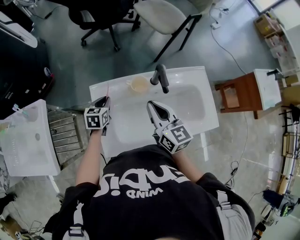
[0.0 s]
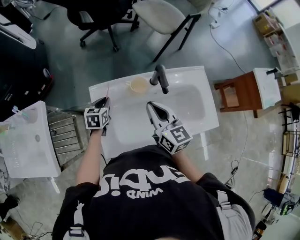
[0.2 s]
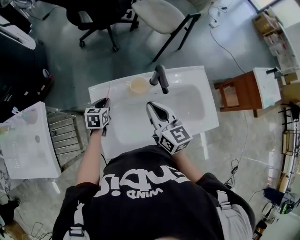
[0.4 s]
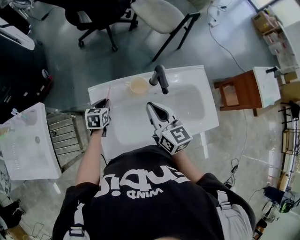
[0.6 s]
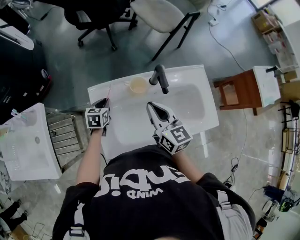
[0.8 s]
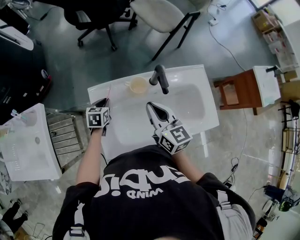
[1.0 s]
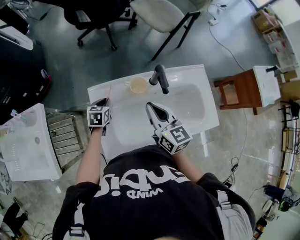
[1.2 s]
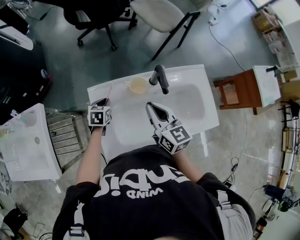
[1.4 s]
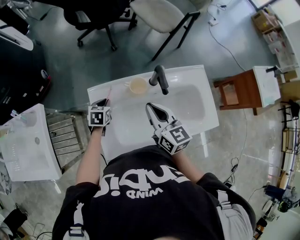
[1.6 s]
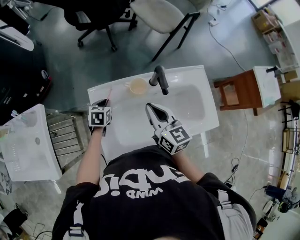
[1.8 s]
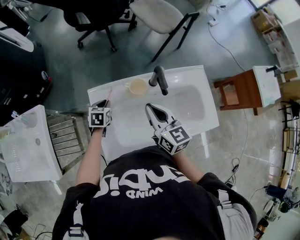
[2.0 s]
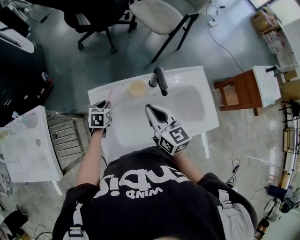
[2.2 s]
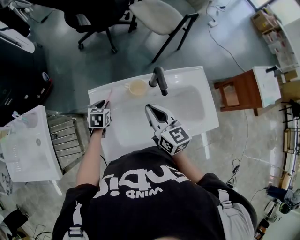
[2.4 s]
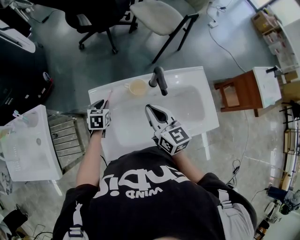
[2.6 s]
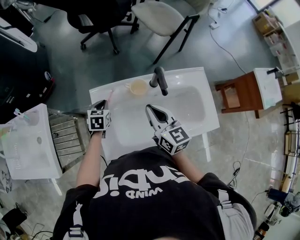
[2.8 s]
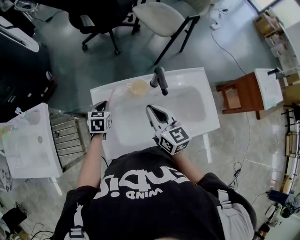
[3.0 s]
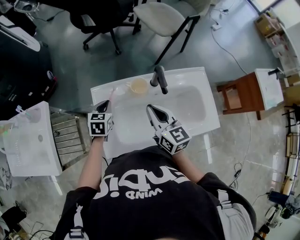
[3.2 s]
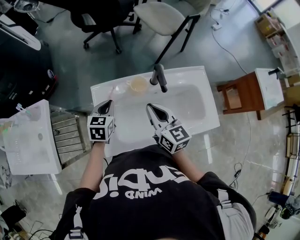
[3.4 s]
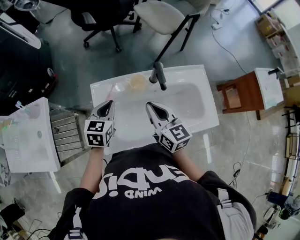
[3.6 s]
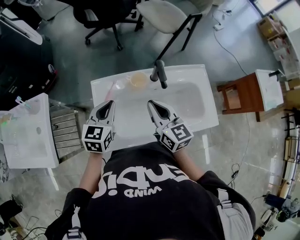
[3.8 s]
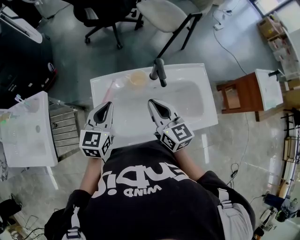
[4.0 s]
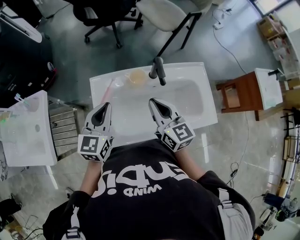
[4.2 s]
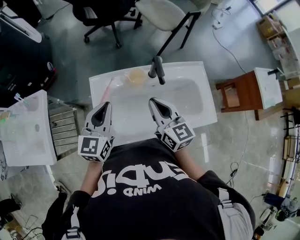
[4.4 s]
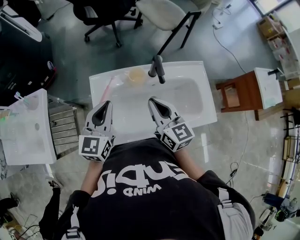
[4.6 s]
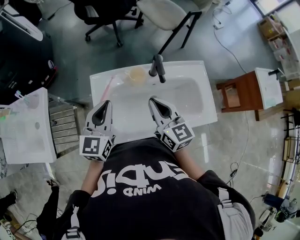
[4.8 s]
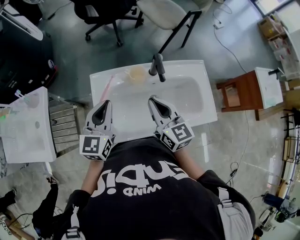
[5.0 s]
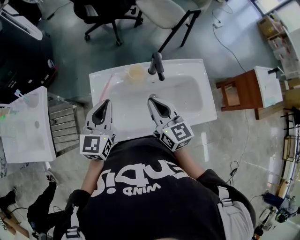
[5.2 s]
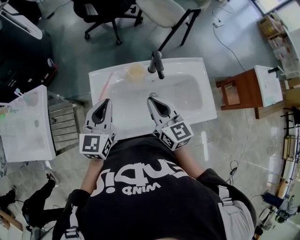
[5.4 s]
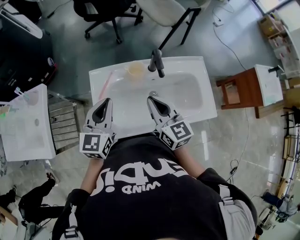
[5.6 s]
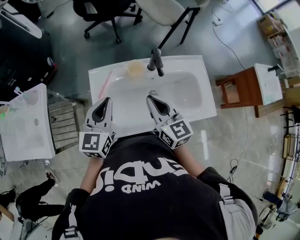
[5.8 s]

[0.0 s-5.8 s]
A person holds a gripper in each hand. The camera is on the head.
0.0 to 2.8 s: The grippers stay close to where they were, moving slightly.
2.8 to 4.4 s: The left gripper shifts approximately 25 cm upward and backward, and angles its fingers upward, by roughly 40 degrees.
4.4 to 5.8 s: The grippers stay close to where they were, moving slightly.

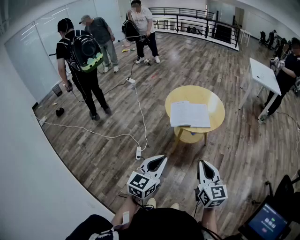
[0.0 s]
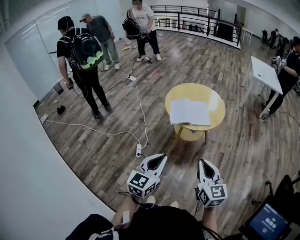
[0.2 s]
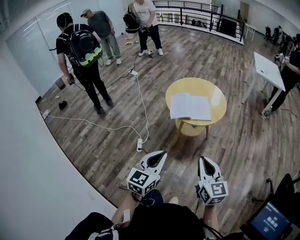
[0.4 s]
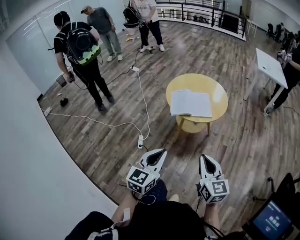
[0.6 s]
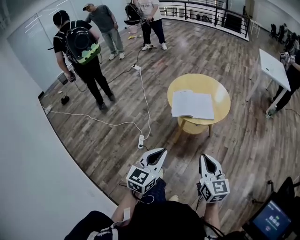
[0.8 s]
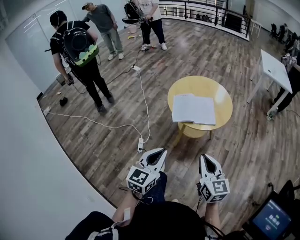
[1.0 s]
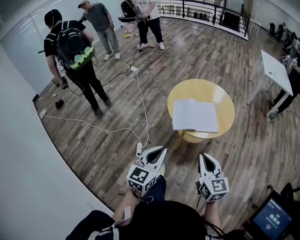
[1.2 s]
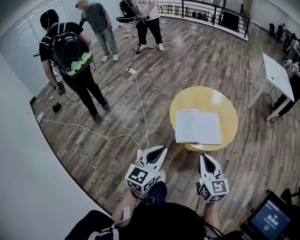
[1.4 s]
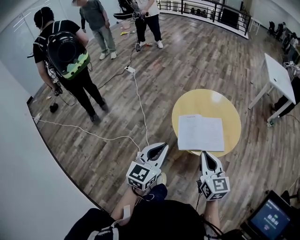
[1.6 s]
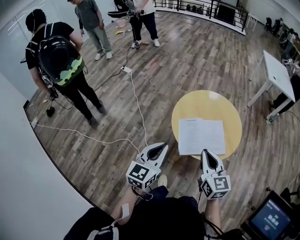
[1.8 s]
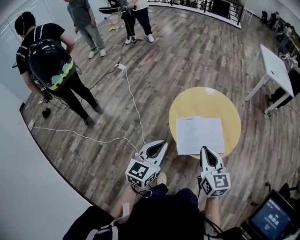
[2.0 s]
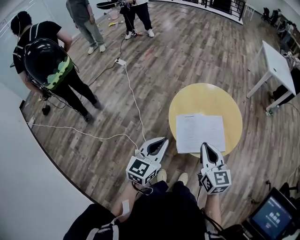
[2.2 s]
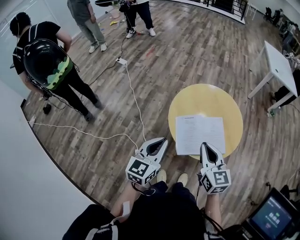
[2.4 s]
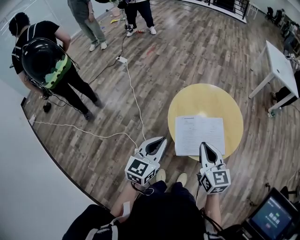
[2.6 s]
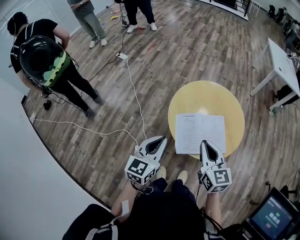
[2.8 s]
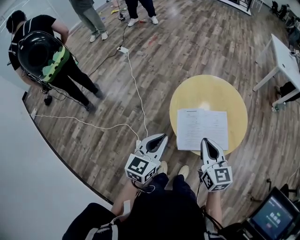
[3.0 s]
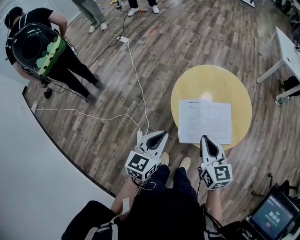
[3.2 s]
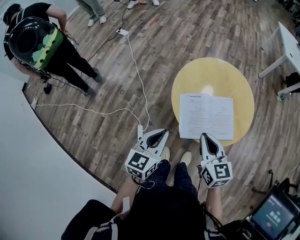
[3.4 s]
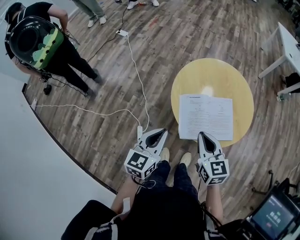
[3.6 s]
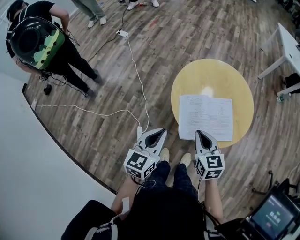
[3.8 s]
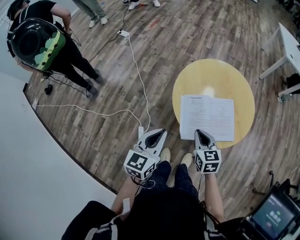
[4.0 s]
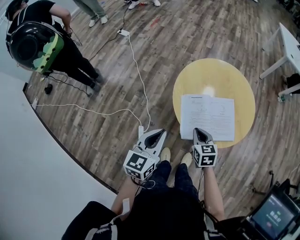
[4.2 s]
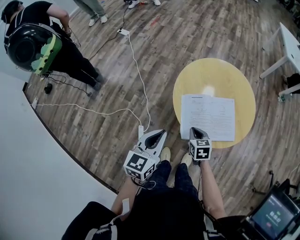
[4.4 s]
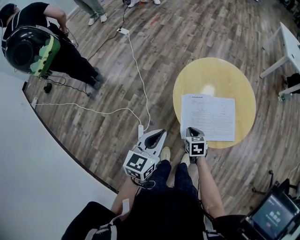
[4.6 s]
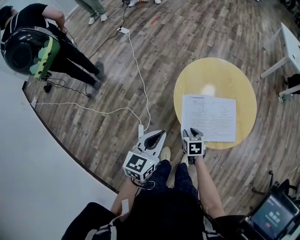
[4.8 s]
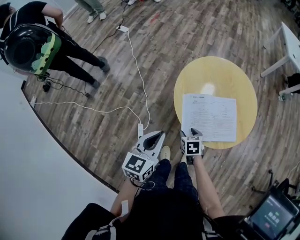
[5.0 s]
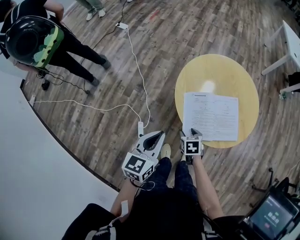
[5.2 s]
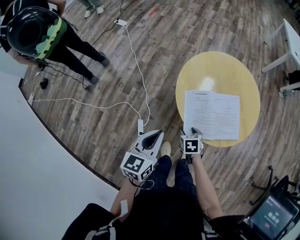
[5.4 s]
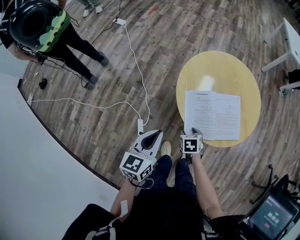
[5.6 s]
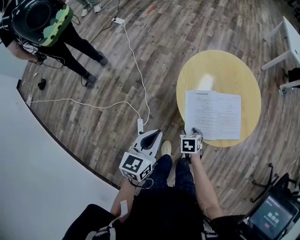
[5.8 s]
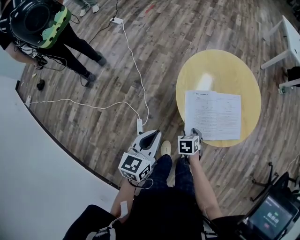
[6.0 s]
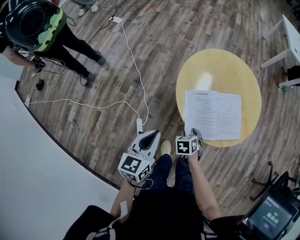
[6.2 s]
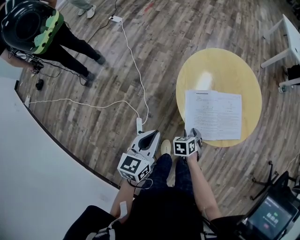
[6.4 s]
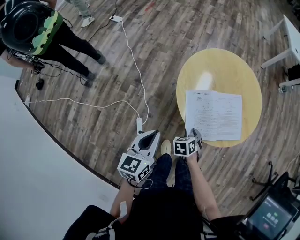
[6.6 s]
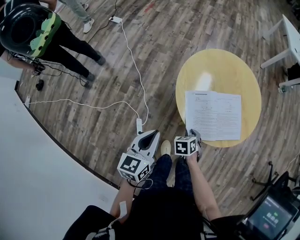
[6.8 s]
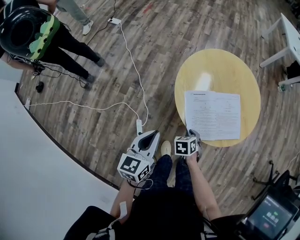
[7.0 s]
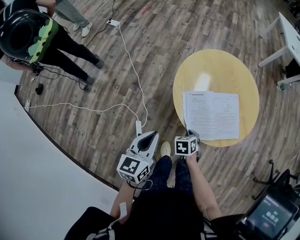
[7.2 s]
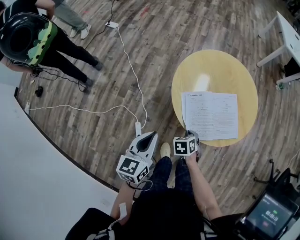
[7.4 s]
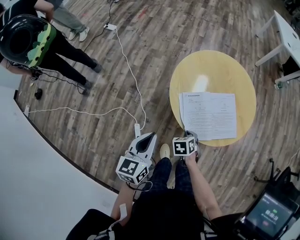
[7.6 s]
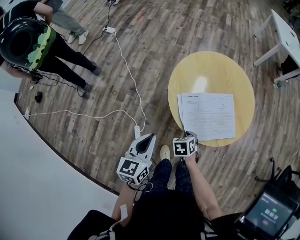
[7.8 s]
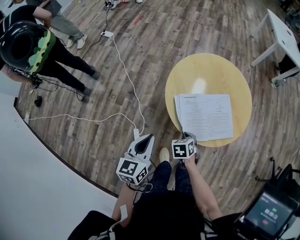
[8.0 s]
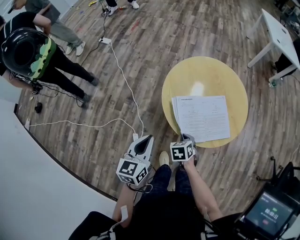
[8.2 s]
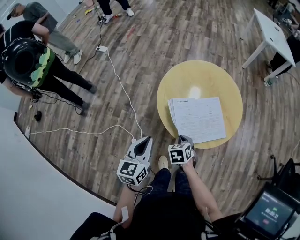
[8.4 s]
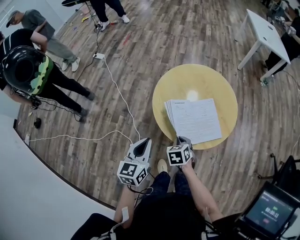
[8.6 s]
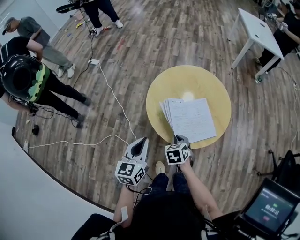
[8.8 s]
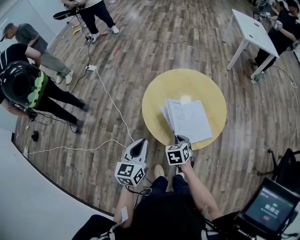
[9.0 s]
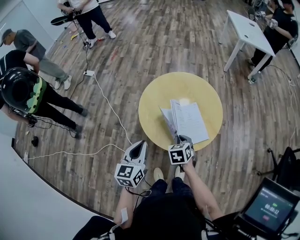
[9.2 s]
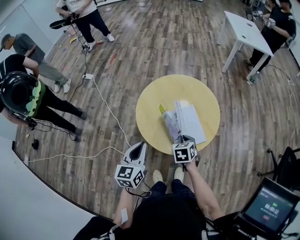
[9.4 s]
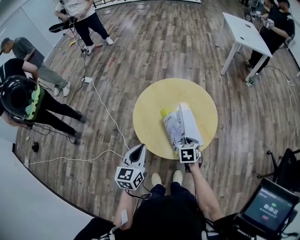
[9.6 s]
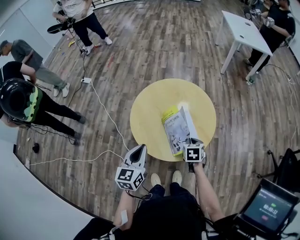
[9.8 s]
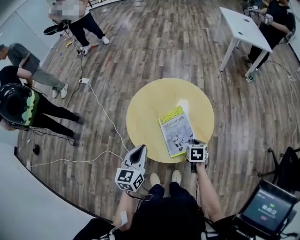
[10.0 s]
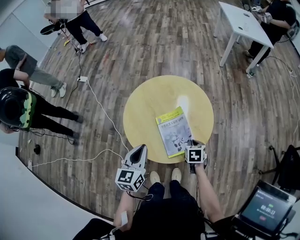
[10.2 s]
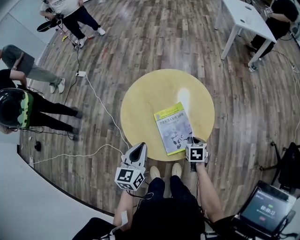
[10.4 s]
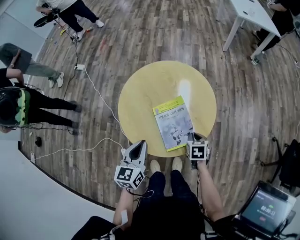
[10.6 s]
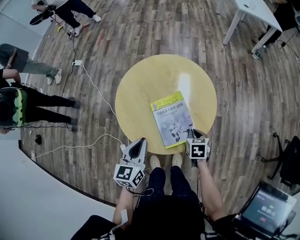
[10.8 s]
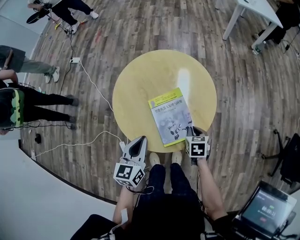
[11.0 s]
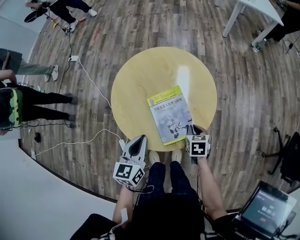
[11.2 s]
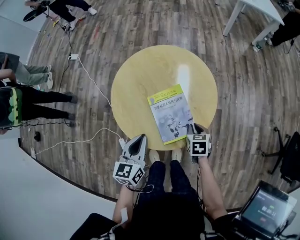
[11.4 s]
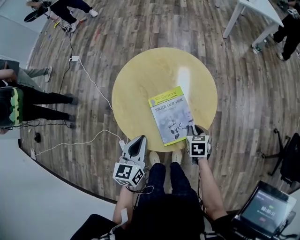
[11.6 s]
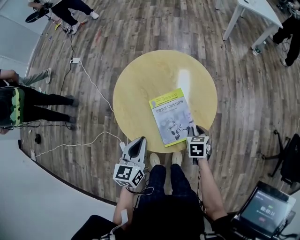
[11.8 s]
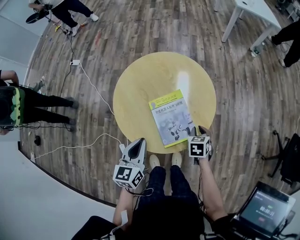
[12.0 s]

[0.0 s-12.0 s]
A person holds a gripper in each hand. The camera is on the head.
0.0 to 1.6 s: Both grippers move forward, roughly 30 cm.
1.6 to 3.0 s: The left gripper is displaced forward and downward by some 15 cm; the right gripper heads forward, covering roughly 10 cm.
3.0 to 4.4 s: The left gripper moves approximately 5 cm; the right gripper travels downward by approximately 25 cm, and tilts its fingers some 30 degrees downward.
4.4 to 6.0 s: The right gripper is displaced downward by some 10 cm, changes its angle by some 20 degrees, and opens up; the left gripper moves about 5 cm.
6.0 to 7.6 s: The right gripper closes its fingers.
7.6 to 9.0 s: The right gripper shifts some 15 cm upward and to the right; the left gripper travels to the right and upward by approximately 10 cm.
9.0 to 10.4 s: The left gripper is displaced to the right and forward by roughly 15 cm, while the right gripper is displaced to the right and downward by roughly 20 cm.
10.4 to 12.0 s: The grippers stay close to where they were, moving slightly.

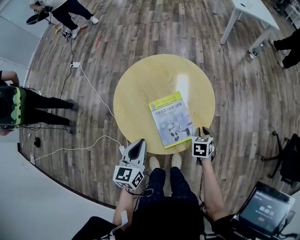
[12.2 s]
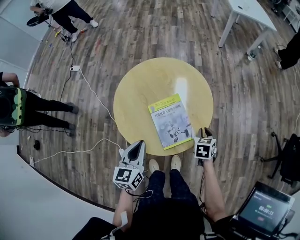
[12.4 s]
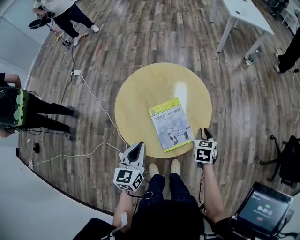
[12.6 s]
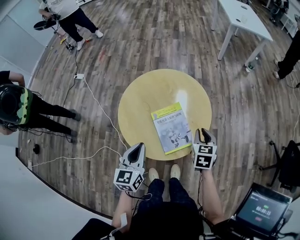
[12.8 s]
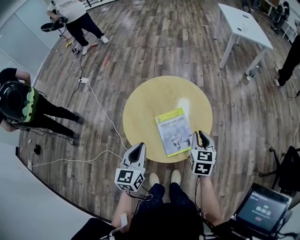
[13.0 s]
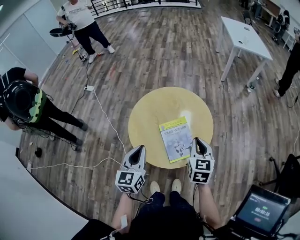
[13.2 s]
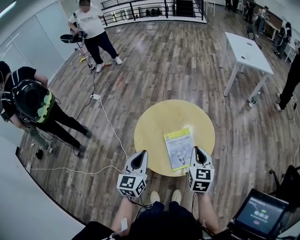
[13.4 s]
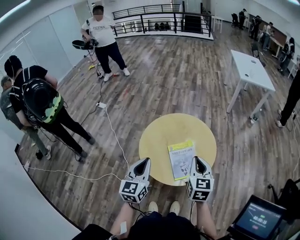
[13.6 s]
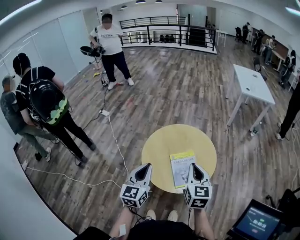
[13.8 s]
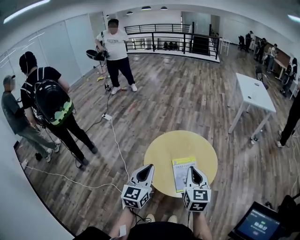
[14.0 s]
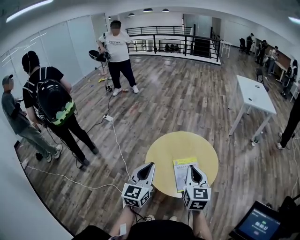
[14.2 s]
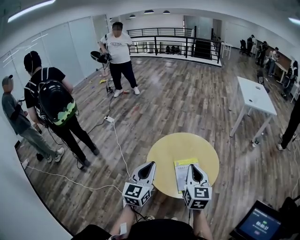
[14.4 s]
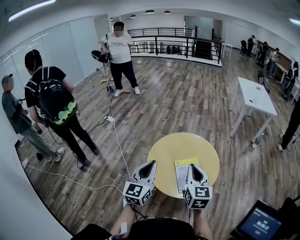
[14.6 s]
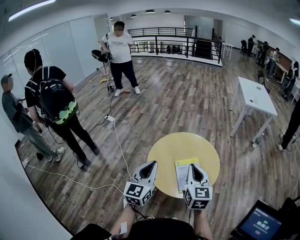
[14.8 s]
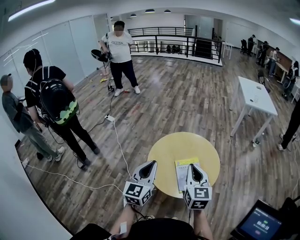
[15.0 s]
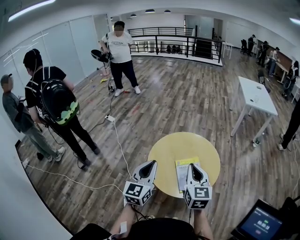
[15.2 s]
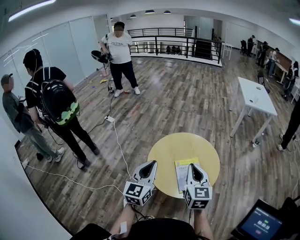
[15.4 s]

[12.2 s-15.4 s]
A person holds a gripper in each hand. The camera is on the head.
12.2 to 13.8 s: The left gripper goes approximately 20 cm upward and to the left, and turns by roughly 20 degrees. Meanwhile the right gripper travels upward and to the left by about 35 cm, and tips its fingers upward by about 40 degrees.
13.8 to 15.4 s: The grippers move only a little.

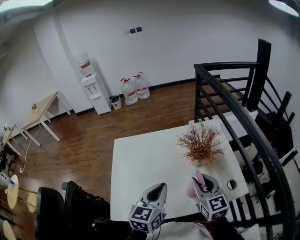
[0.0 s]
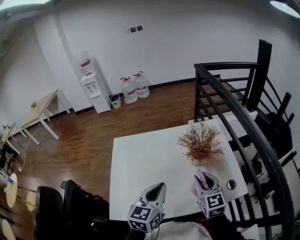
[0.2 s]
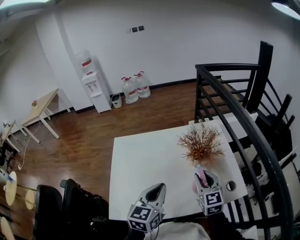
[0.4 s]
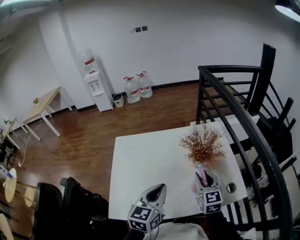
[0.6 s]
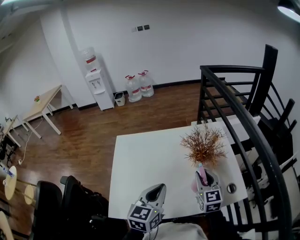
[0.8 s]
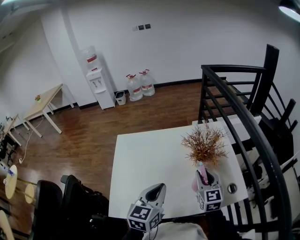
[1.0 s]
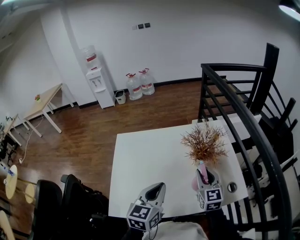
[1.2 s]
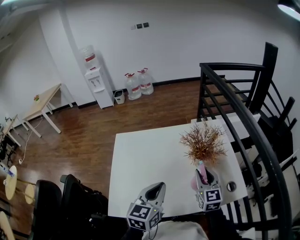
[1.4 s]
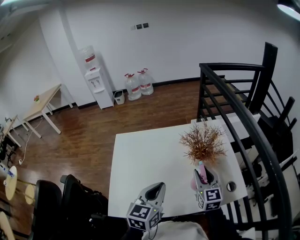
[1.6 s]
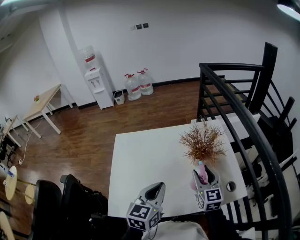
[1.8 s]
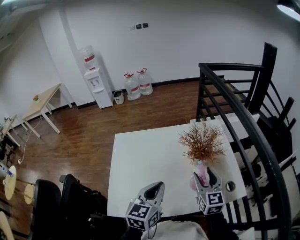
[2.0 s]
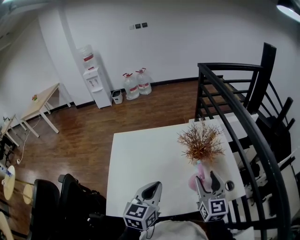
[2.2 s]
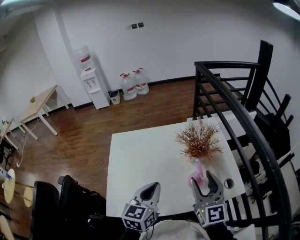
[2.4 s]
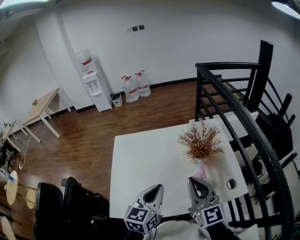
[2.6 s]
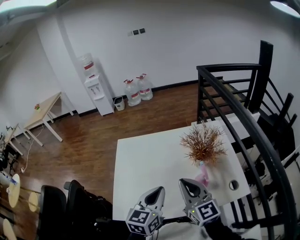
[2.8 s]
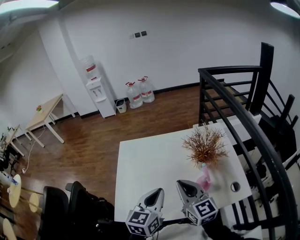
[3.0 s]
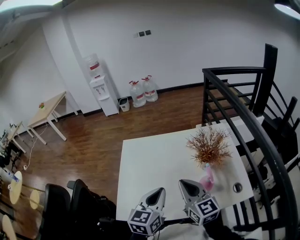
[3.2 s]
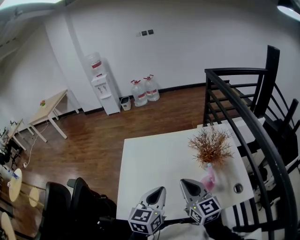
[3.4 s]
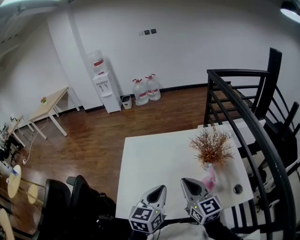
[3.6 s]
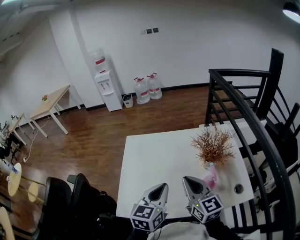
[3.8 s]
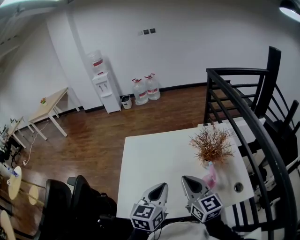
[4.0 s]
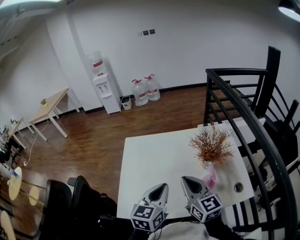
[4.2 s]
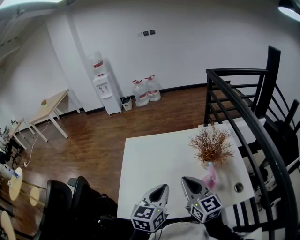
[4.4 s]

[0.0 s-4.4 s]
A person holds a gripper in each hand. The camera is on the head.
0.0 to 1.4 s: The right gripper travels forward by approximately 5 cm.
1.4 to 3.0 s: The right gripper heads to the left, backward and upward, covering approximately 15 cm, swivels about 20 degrees, and opens and closes again.
3.0 to 4.4 s: The grippers stay close to where they were, moving slightly.
